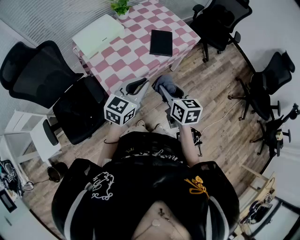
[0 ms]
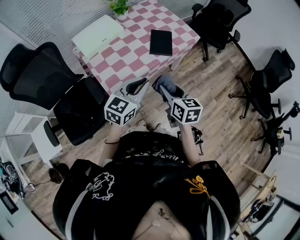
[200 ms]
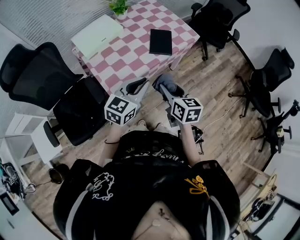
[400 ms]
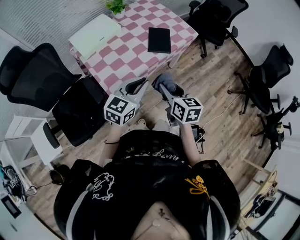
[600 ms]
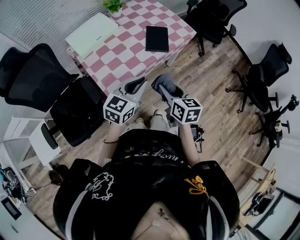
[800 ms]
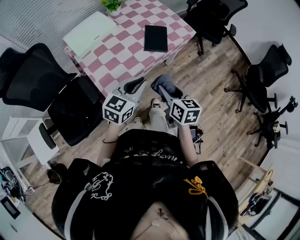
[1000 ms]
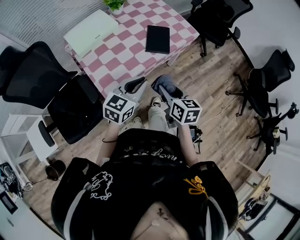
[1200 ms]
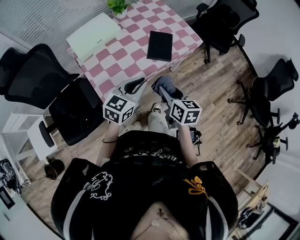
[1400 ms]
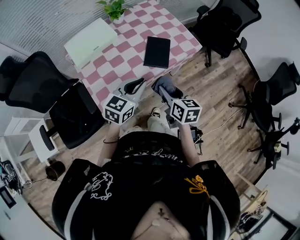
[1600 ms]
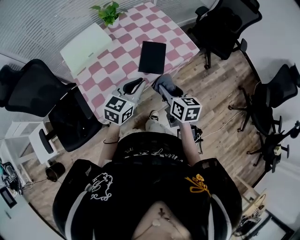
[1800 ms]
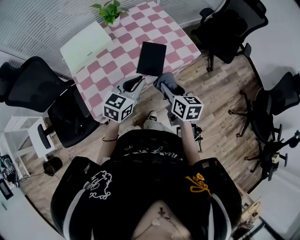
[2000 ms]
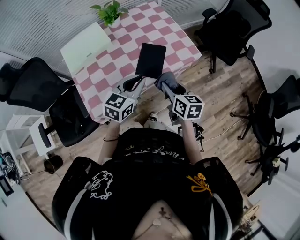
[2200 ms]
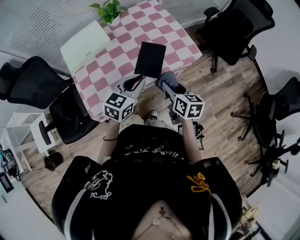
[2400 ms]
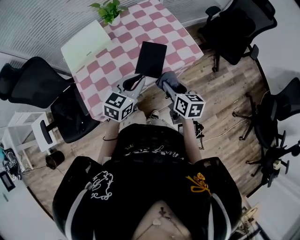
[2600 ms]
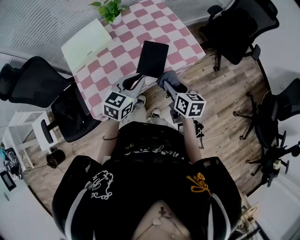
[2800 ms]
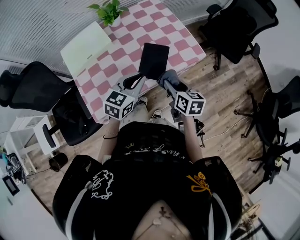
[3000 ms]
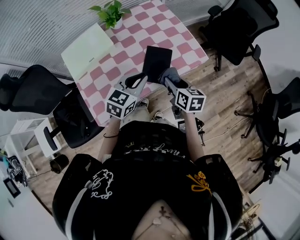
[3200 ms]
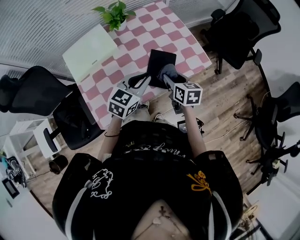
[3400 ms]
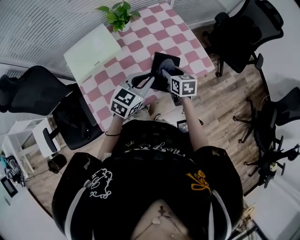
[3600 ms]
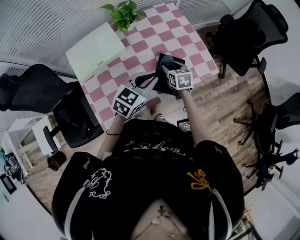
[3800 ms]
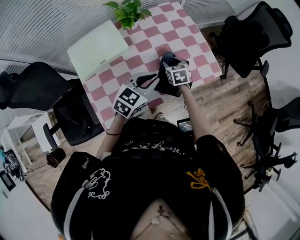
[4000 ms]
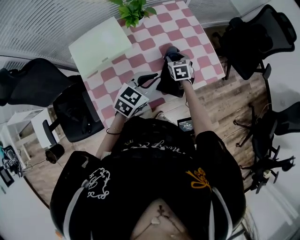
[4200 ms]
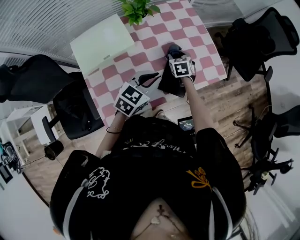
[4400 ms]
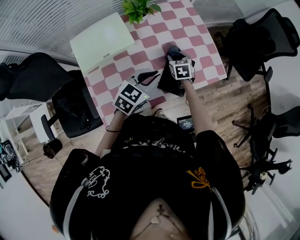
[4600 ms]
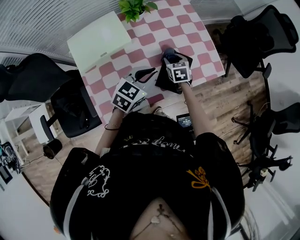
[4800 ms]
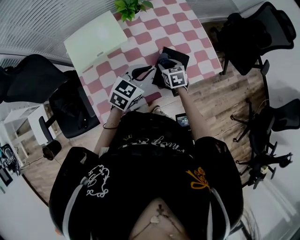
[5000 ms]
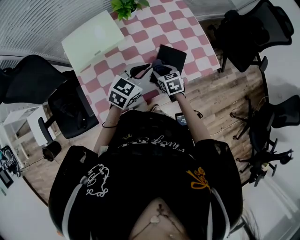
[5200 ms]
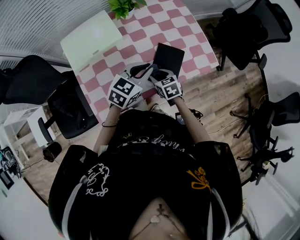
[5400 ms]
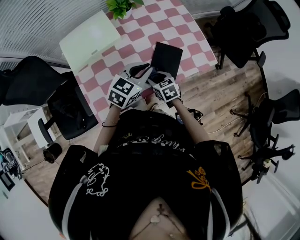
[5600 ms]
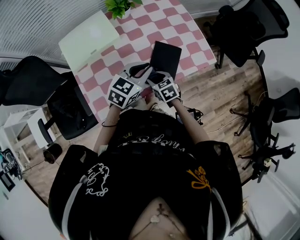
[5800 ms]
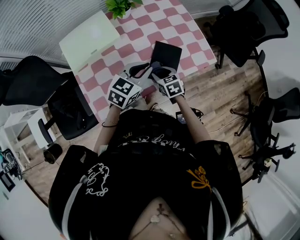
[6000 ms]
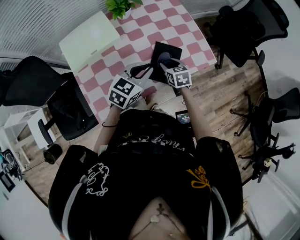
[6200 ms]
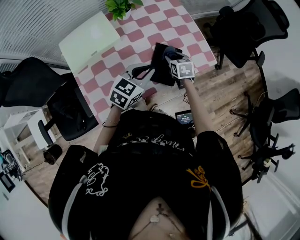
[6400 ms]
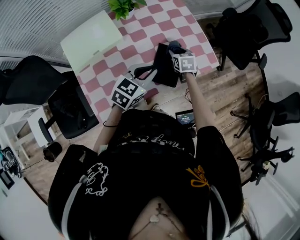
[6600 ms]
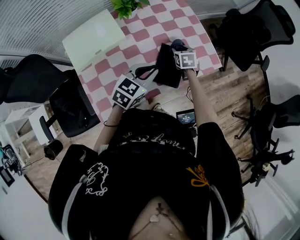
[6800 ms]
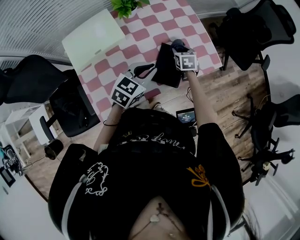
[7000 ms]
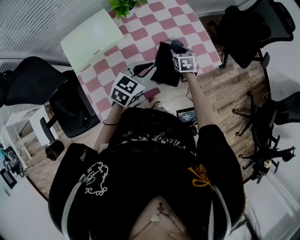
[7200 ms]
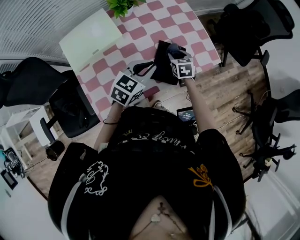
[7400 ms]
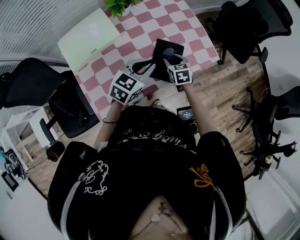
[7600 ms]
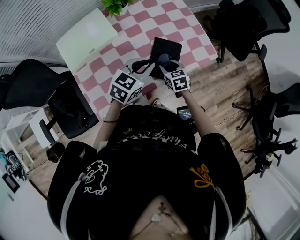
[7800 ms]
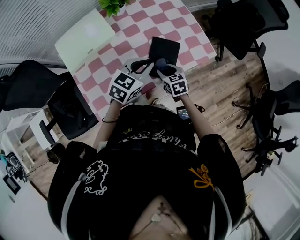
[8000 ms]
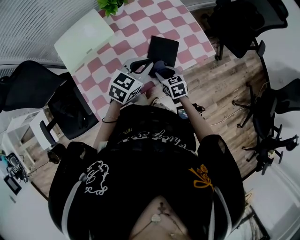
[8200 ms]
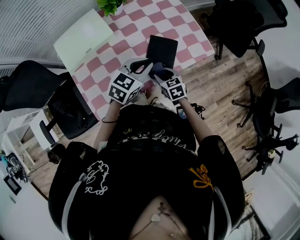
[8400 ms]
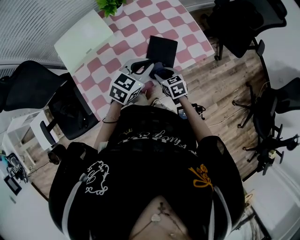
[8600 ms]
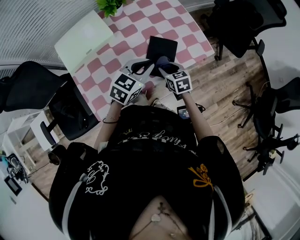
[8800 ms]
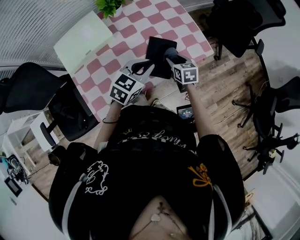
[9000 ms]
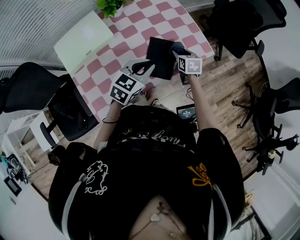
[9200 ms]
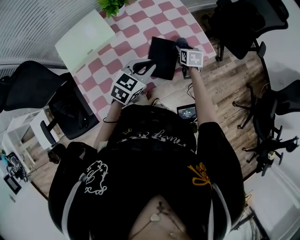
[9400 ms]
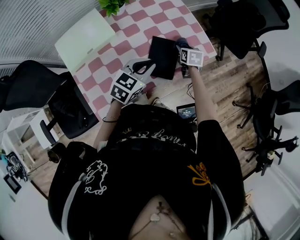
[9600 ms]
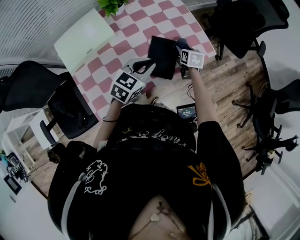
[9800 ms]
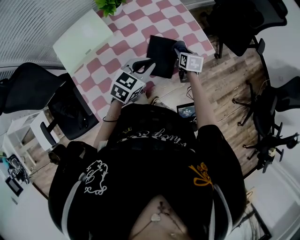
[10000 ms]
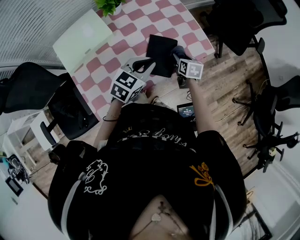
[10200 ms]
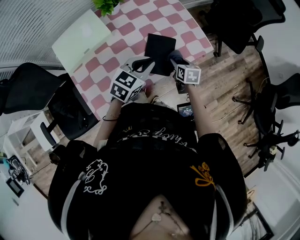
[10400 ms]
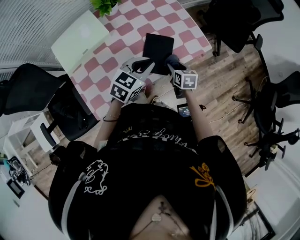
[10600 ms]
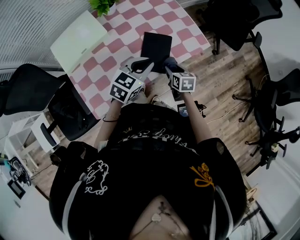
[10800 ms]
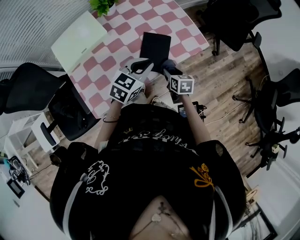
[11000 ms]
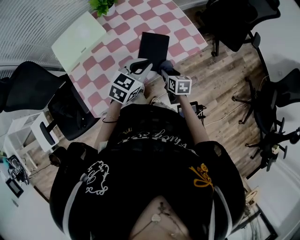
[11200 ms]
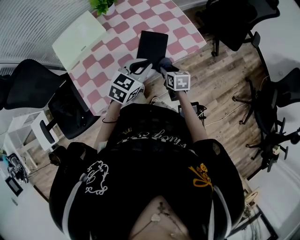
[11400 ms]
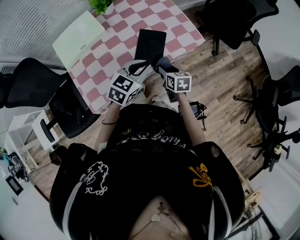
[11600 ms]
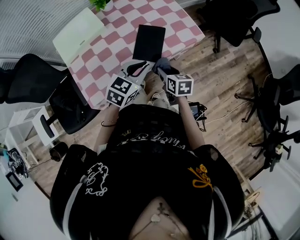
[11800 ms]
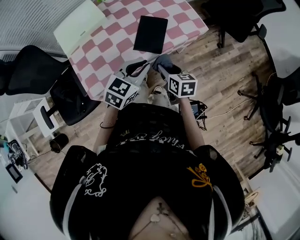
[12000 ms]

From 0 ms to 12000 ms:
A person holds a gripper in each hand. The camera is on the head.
From 0 ms to 1600 ms: The grippers both shift forward by about 10 cm.
From 1600 ms to 3000 ms: The right gripper heads forward and to the right, covering roughly 15 cm; the left gripper shifts roughly 10 cm forward.
From 3000 ms to 4400 ms: The right gripper shifts approximately 30 cm forward, to the left and downward, and turns by roughly 40 degrees. Meanwhile the left gripper travels forward and to the left by about 10 cm.
From 4400 ms to 6000 ms: The right gripper goes some 15 cm backward.
From 6000 ms to 7600 ms: The right gripper goes roughly 10 cm forward.
From 7600 ms to 9000 ms: The right gripper reaches approximately 10 cm backward, then returns.
From 9000 ms to 10400 ms: The right gripper reaches roughly 10 cm forward, then returns.
From 10400 ms to 12000 ms: The right gripper moves backward and upward, approximately 20 cm. The left gripper shifts roughly 15 cm backward and to the right.

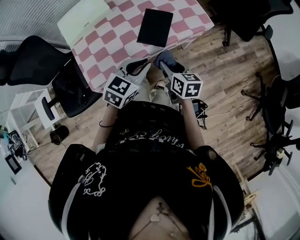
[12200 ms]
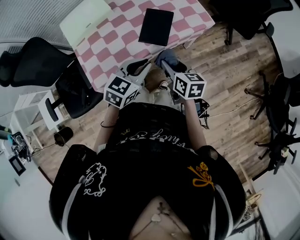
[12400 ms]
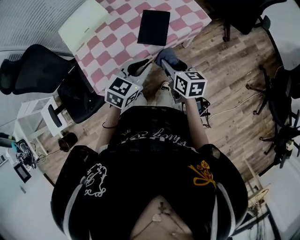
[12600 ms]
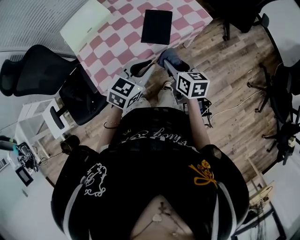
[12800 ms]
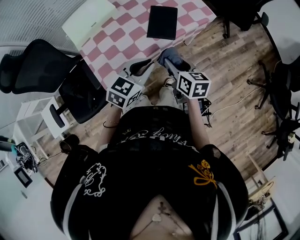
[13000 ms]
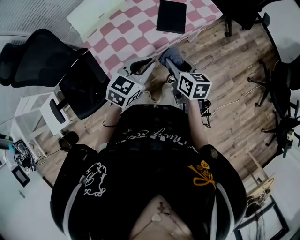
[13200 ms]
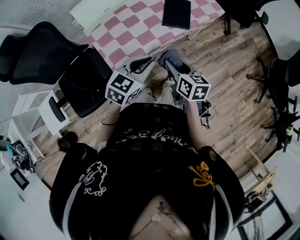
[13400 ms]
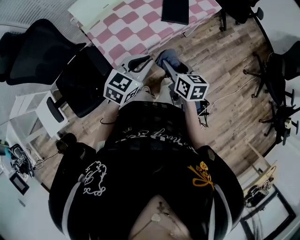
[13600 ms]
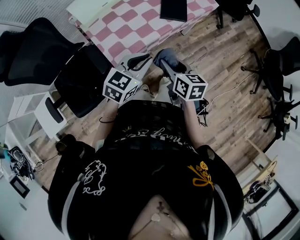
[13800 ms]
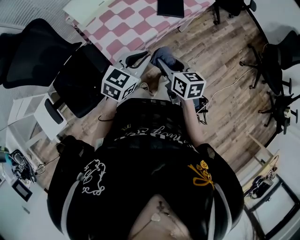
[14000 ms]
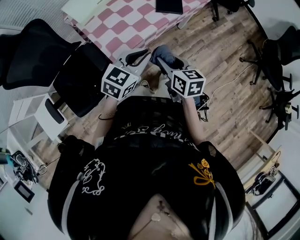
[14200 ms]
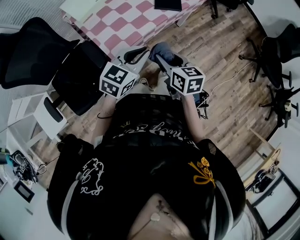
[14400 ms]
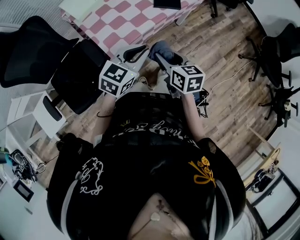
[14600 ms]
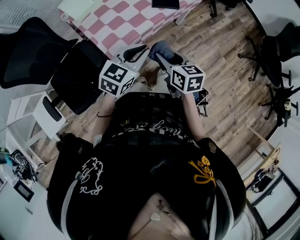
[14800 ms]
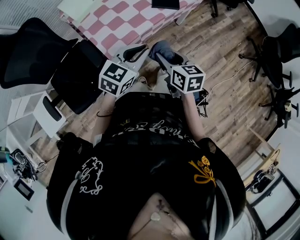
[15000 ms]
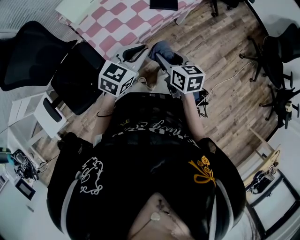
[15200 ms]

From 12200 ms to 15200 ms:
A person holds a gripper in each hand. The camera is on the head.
From 12200 ms to 13800 ms: Both grippers travel together backward and to the left, approximately 25 cm.
From 13800 ms to 15200 ms: The grippers make only small movements.

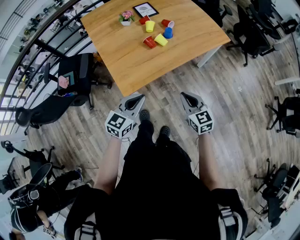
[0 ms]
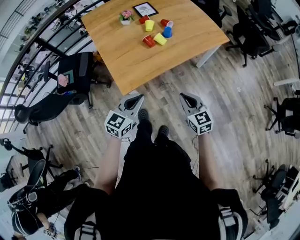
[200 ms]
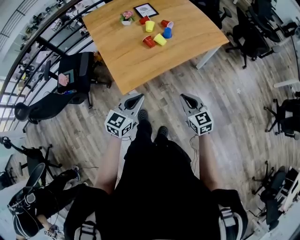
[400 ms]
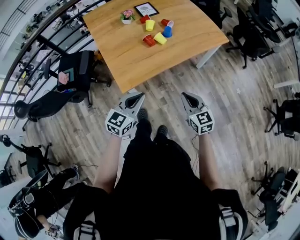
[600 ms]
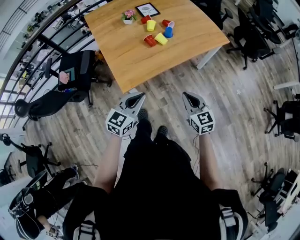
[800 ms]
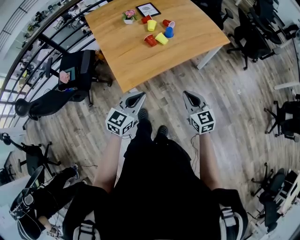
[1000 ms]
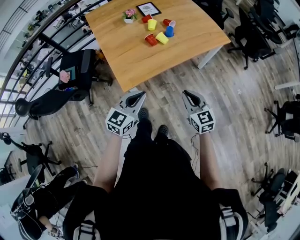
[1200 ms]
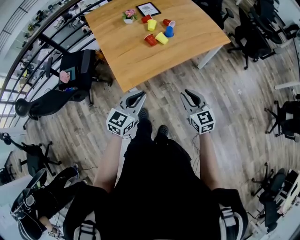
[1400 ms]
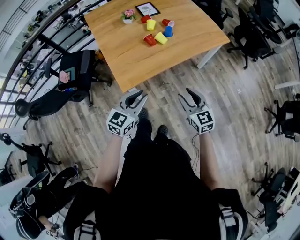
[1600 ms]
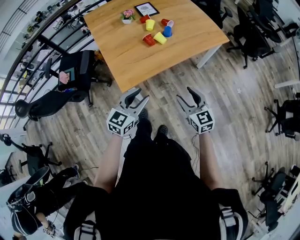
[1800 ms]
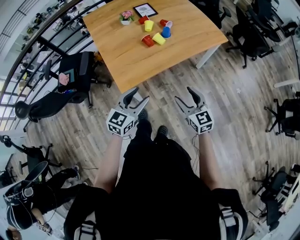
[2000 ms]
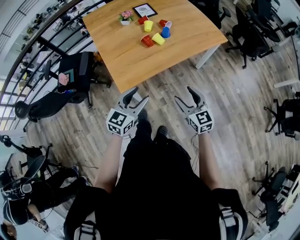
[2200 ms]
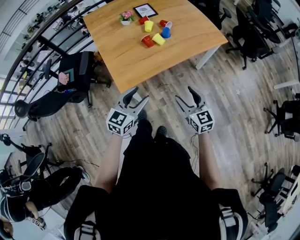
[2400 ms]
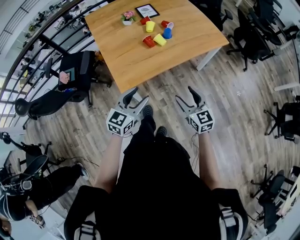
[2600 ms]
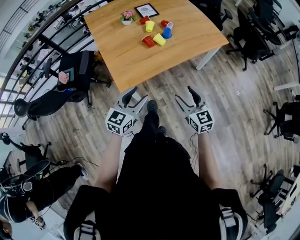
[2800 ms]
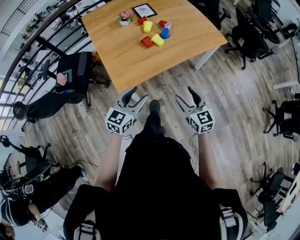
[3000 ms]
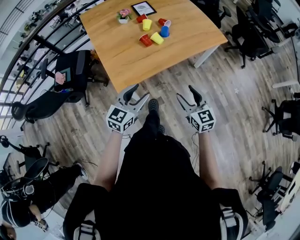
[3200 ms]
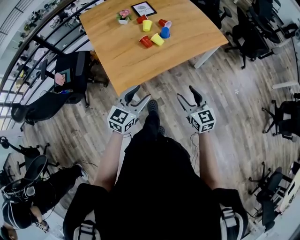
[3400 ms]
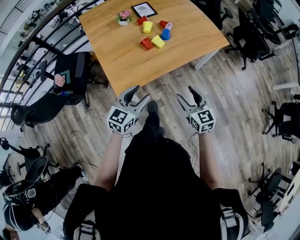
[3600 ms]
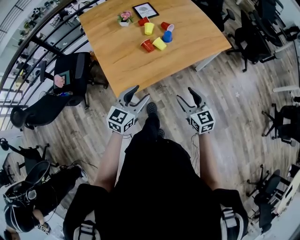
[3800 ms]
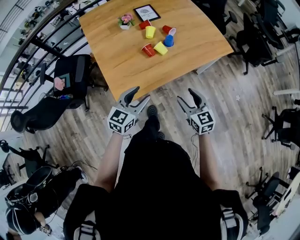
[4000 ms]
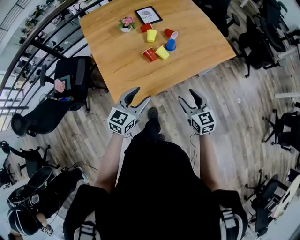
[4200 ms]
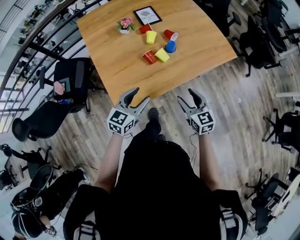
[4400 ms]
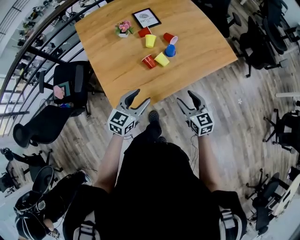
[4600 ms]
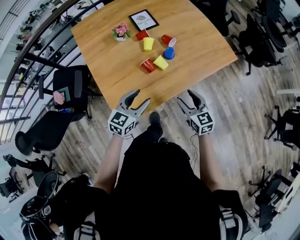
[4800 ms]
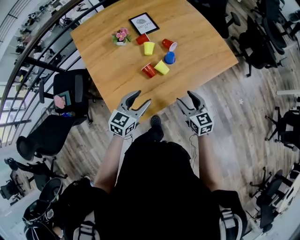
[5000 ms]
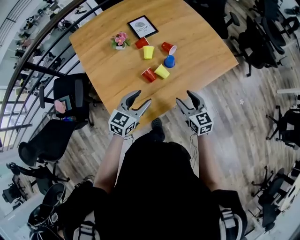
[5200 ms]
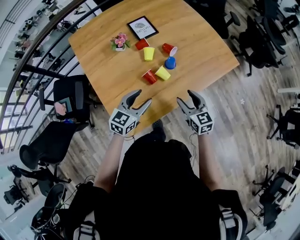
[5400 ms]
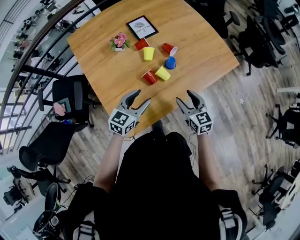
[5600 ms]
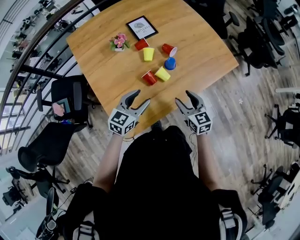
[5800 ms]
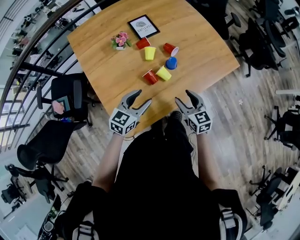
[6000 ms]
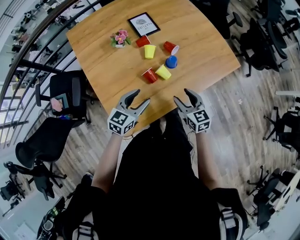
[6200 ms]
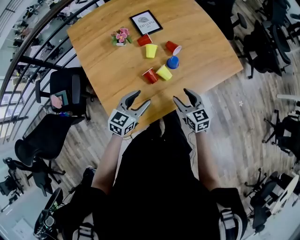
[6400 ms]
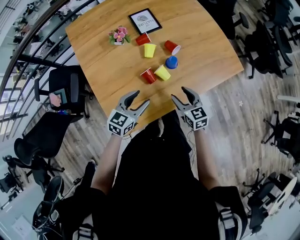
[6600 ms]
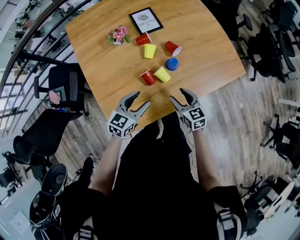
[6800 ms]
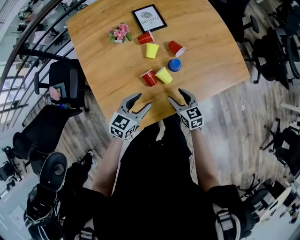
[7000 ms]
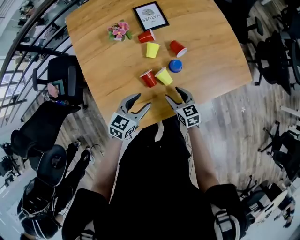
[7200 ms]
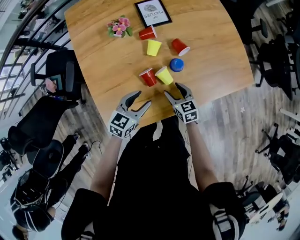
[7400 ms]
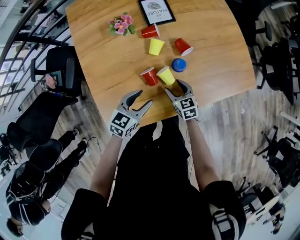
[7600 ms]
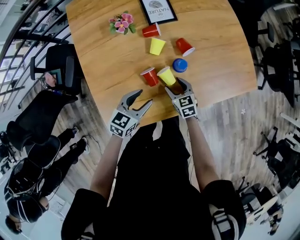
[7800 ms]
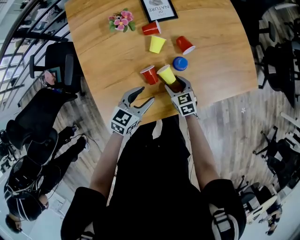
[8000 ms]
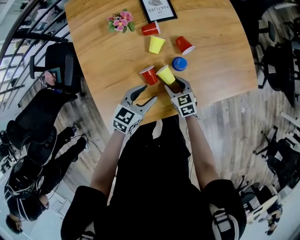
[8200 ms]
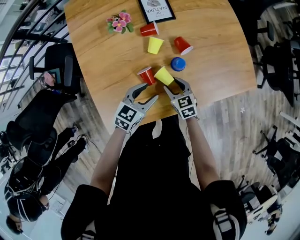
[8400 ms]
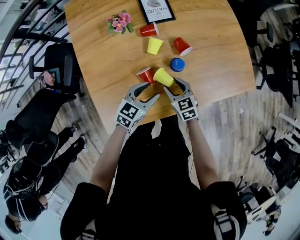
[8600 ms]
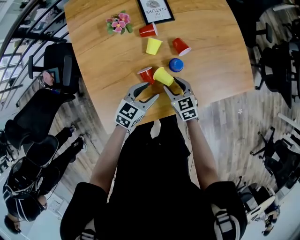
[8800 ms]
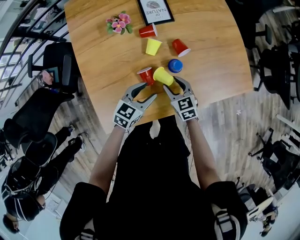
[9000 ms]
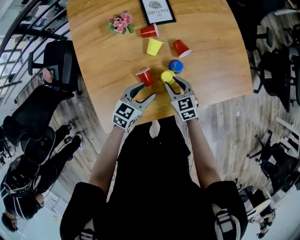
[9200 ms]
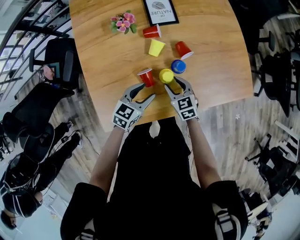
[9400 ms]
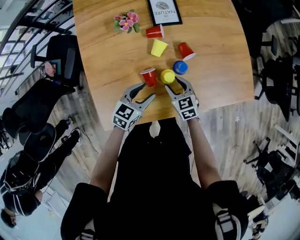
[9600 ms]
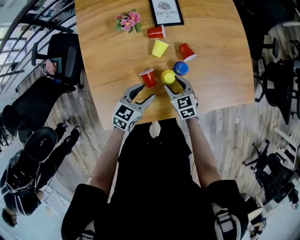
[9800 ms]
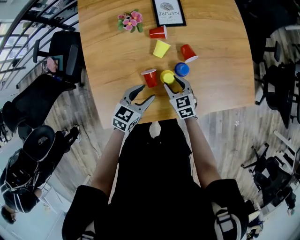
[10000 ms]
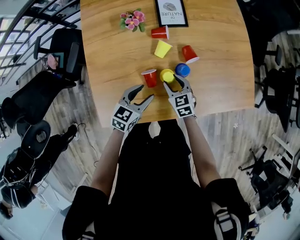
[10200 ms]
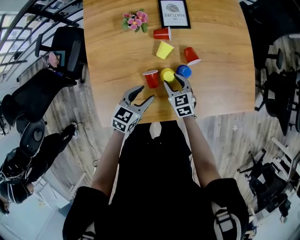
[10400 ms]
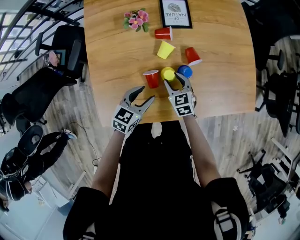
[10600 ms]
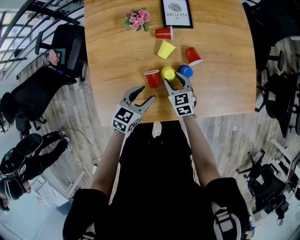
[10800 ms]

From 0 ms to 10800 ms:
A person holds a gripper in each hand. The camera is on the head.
From 0 ms to 1600 ms: The right gripper opens.
From 1600 ms to 3000 ms: The left gripper opens.
From 3000 ms to 4600 ms: Both grippers move forward, some 20 cm.
From 4600 ms to 6200 ms: The grippers both shift forward by roughly 10 cm.
From 6200 ms to 7800 ms: The right gripper is displaced downward and forward by some 20 cm, and changes its angle by roughly 20 degrees, while the left gripper moves downward, some 10 cm.
From 7800 ms to 9200 ms: The right gripper moves upward, approximately 5 cm, and closes up.
From 9200 ms to 10800 ms: The right gripper changes place by about 5 cm.
